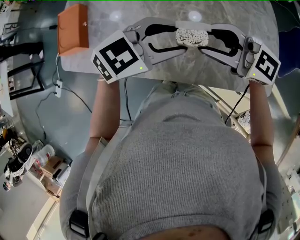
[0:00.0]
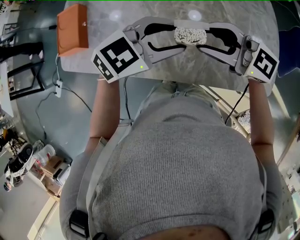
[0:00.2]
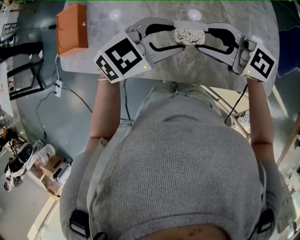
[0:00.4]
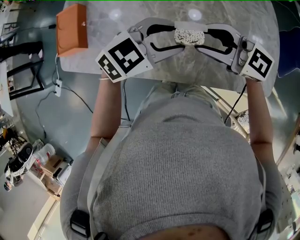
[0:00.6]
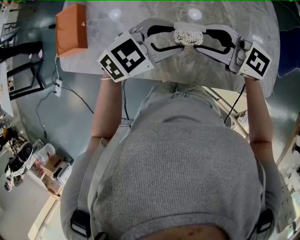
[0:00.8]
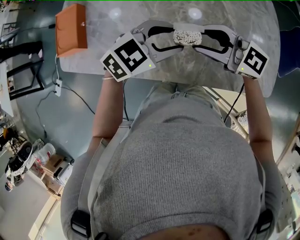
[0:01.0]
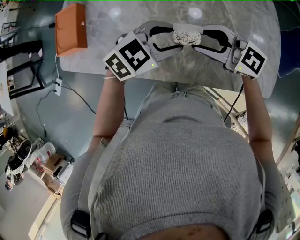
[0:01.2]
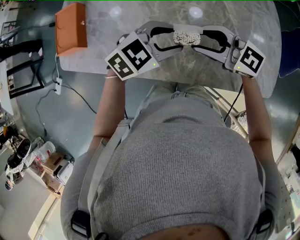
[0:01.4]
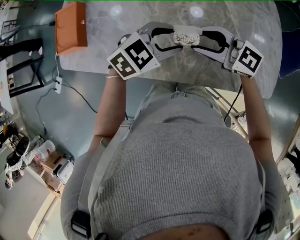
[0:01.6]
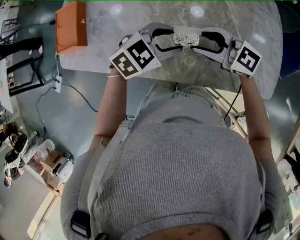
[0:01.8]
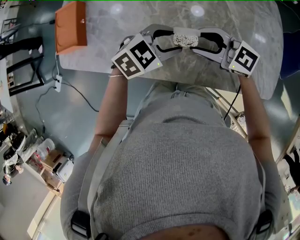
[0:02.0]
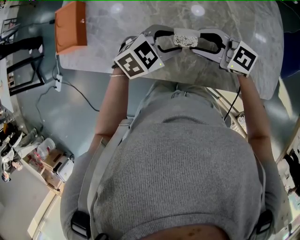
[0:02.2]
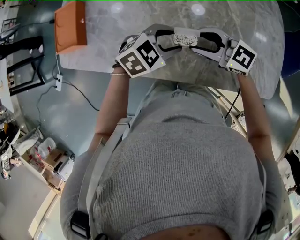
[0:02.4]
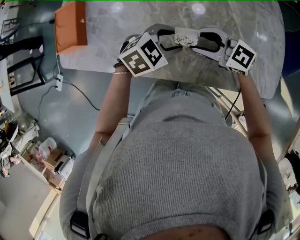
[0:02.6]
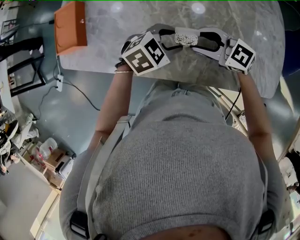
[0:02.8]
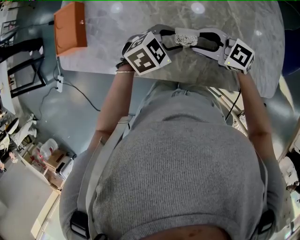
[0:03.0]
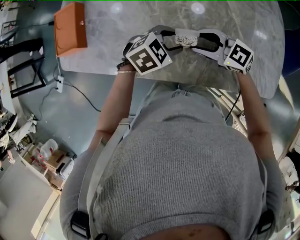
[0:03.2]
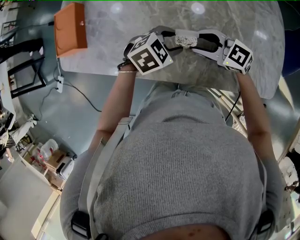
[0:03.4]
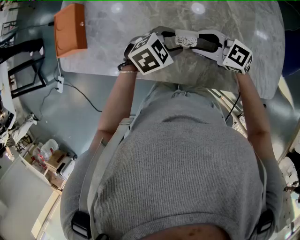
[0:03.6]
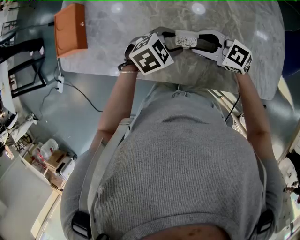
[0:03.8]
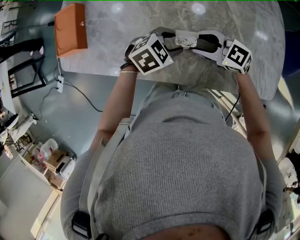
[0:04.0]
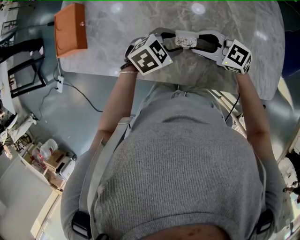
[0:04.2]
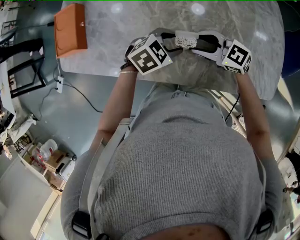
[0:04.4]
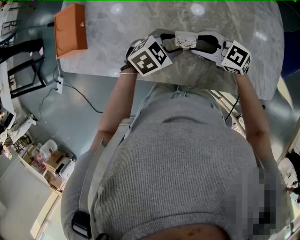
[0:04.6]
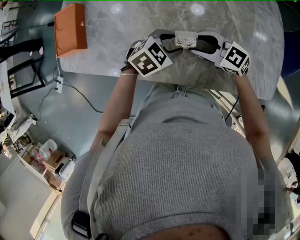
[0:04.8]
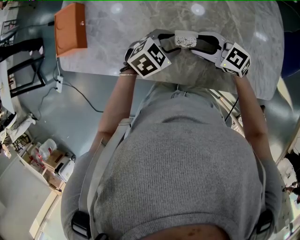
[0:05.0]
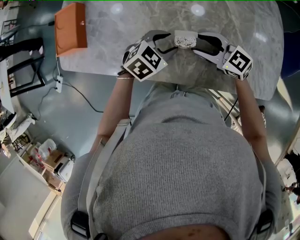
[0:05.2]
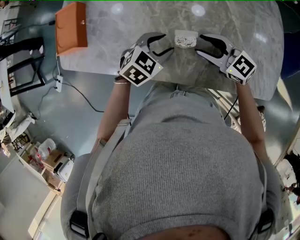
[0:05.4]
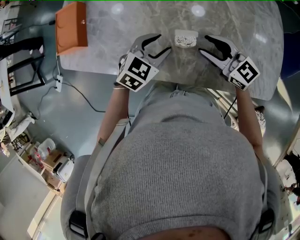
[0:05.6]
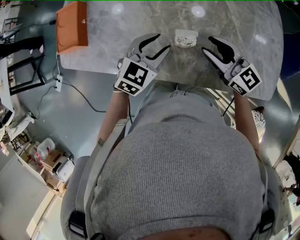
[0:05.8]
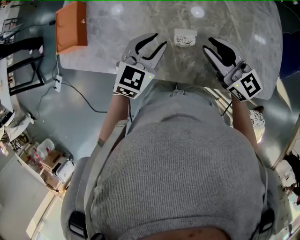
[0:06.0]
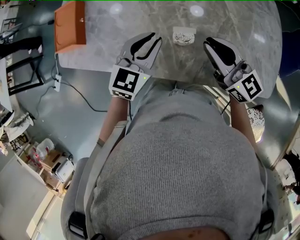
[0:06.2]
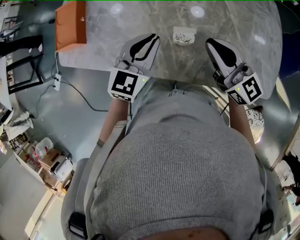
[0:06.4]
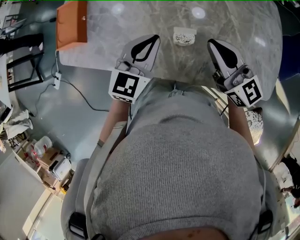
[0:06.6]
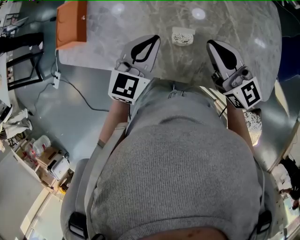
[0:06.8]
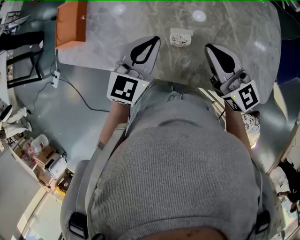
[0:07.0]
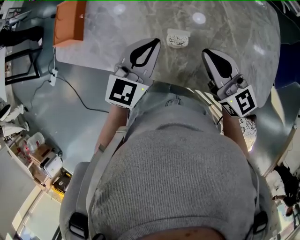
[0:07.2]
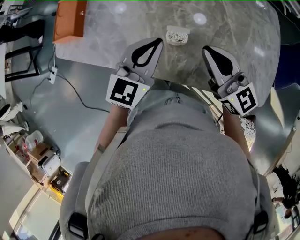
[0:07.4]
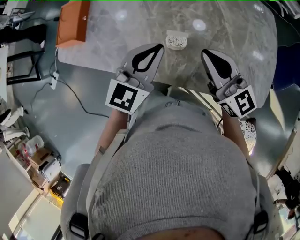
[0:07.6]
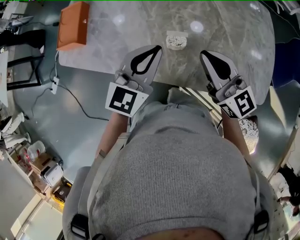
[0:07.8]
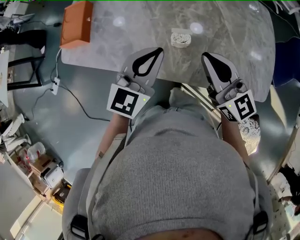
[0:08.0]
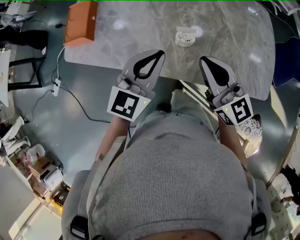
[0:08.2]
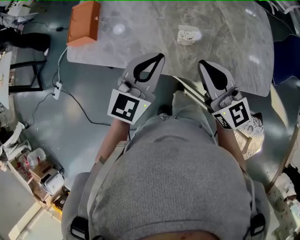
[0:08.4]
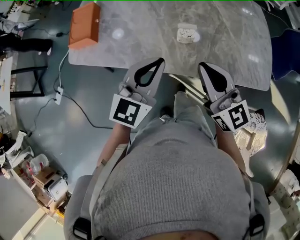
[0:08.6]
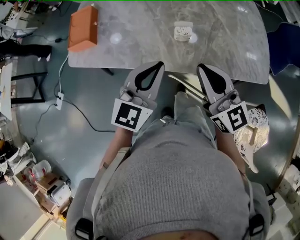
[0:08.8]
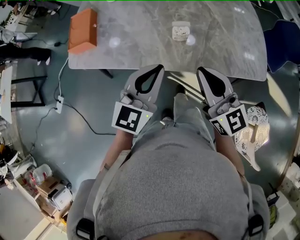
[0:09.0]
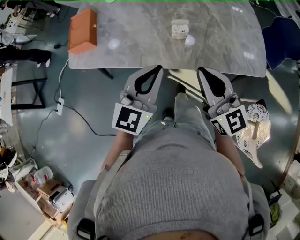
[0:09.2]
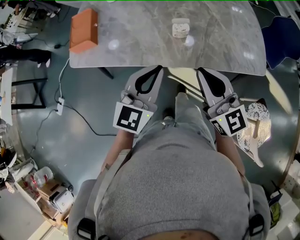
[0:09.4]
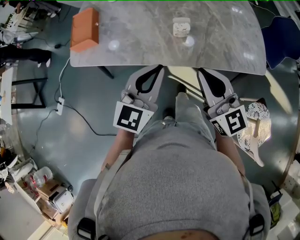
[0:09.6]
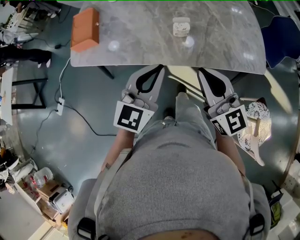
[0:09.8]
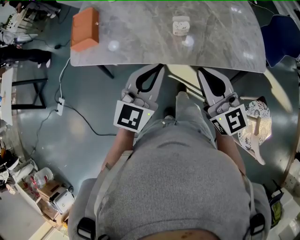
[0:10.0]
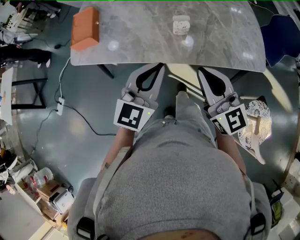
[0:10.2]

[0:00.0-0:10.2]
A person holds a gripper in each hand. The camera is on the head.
0.0 to 1.4 s: Both grippers travel together downward, some 10 cm.
1.4 to 3.0 s: The two grippers go approximately 10 cm downward.
3.0 to 4.4 s: The grippers move only a little.
4.4 to 5.8 s: Both grippers travel together upward, about 5 cm. The right gripper rotates some 30 degrees, while the left gripper changes its angle by approximately 30 degrees.
5.8 to 7.2 s: Both grippers travel together upward, about 5 cm. The right gripper closes, while the left gripper rotates about 20 degrees, and closes its fingers.
7.2 to 8.8 s: The left gripper travels backward by roughly 15 cm. Meanwhile the right gripper goes approximately 15 cm backward and to the left.
8.8 to 10.2 s: Both grippers travel together backward, roughly 5 cm.

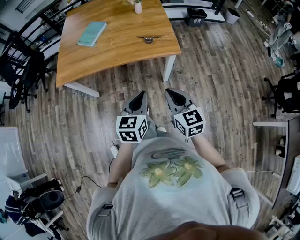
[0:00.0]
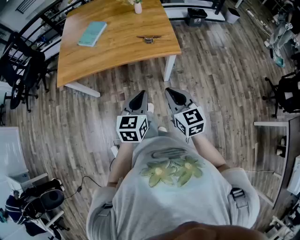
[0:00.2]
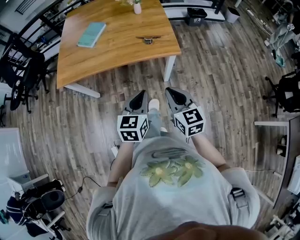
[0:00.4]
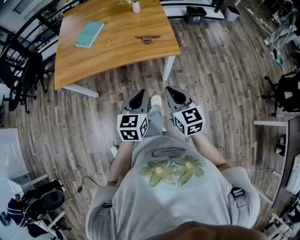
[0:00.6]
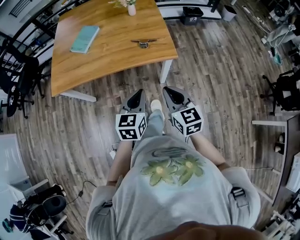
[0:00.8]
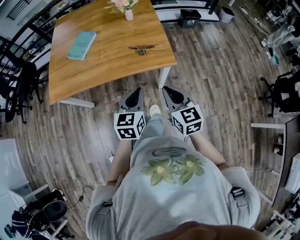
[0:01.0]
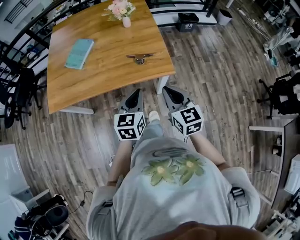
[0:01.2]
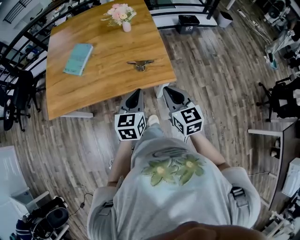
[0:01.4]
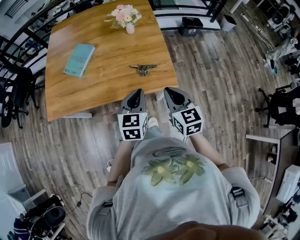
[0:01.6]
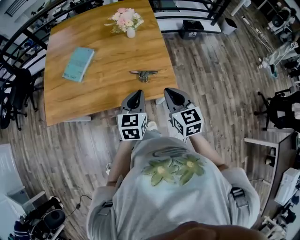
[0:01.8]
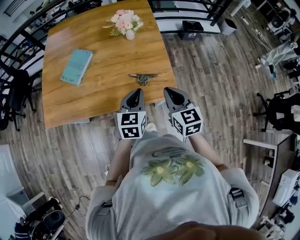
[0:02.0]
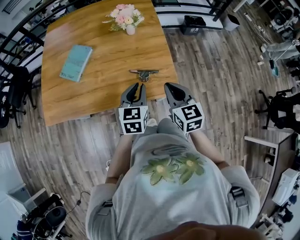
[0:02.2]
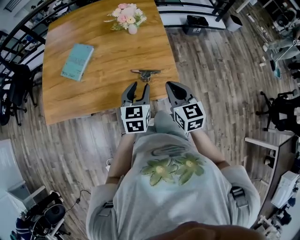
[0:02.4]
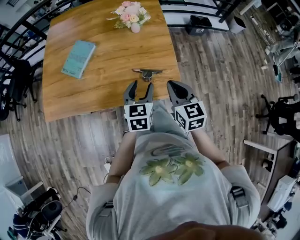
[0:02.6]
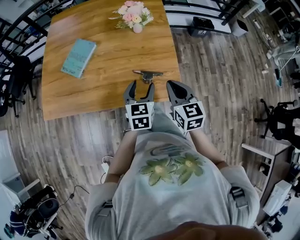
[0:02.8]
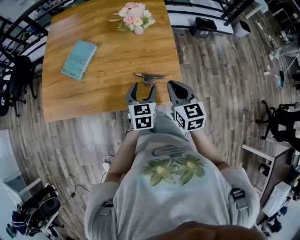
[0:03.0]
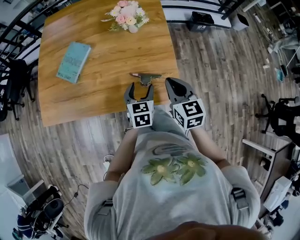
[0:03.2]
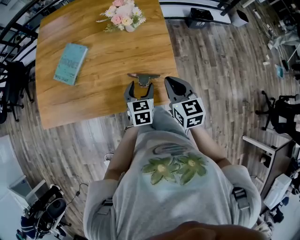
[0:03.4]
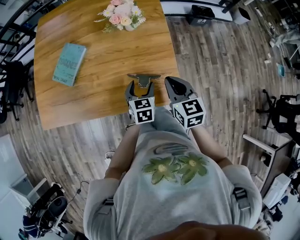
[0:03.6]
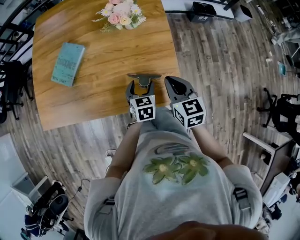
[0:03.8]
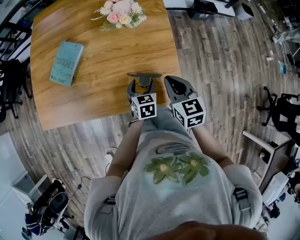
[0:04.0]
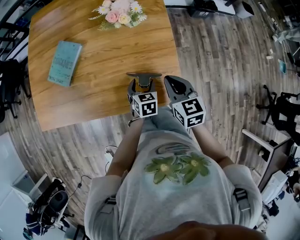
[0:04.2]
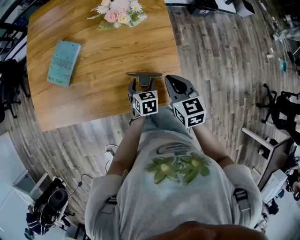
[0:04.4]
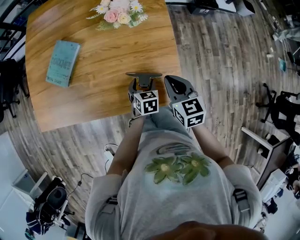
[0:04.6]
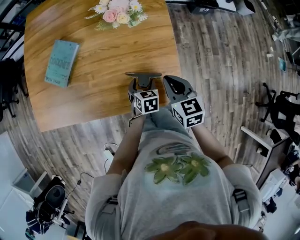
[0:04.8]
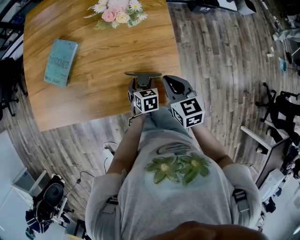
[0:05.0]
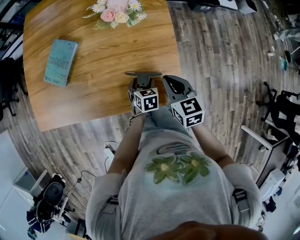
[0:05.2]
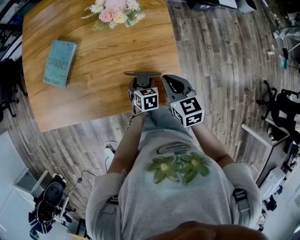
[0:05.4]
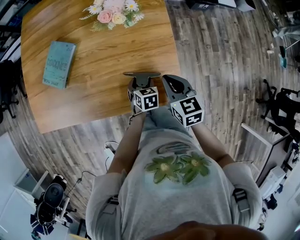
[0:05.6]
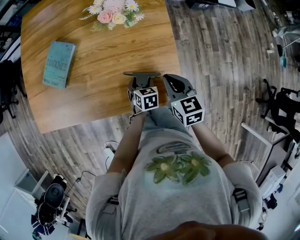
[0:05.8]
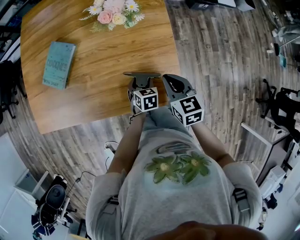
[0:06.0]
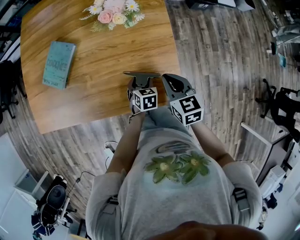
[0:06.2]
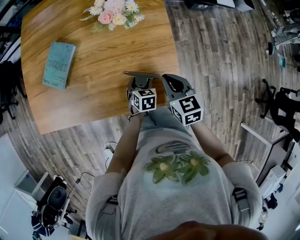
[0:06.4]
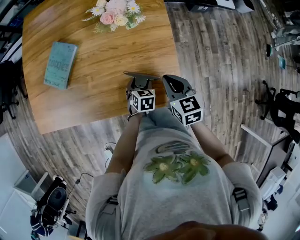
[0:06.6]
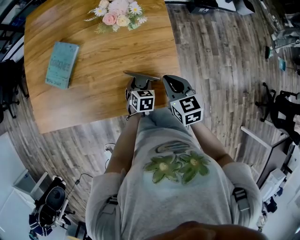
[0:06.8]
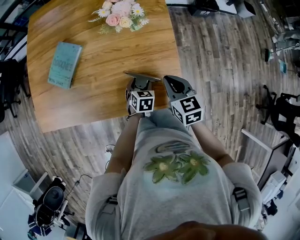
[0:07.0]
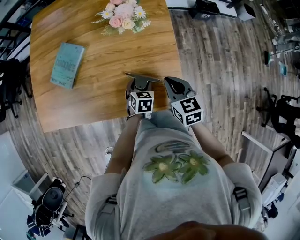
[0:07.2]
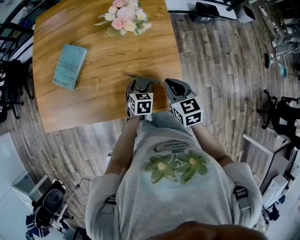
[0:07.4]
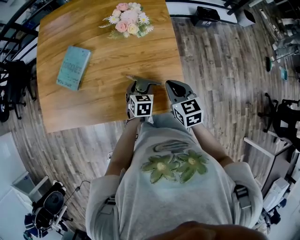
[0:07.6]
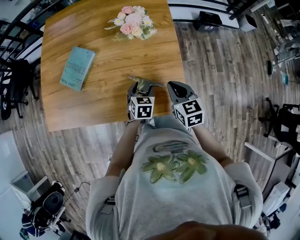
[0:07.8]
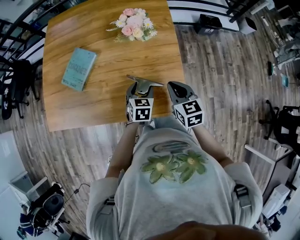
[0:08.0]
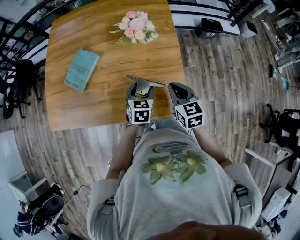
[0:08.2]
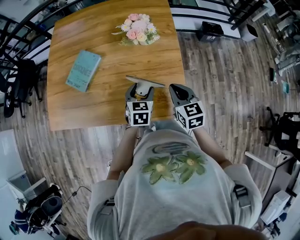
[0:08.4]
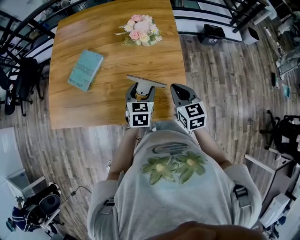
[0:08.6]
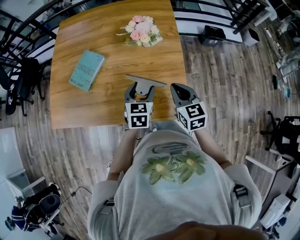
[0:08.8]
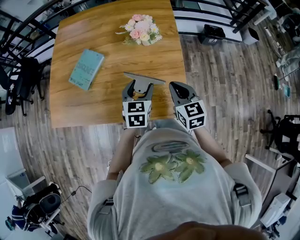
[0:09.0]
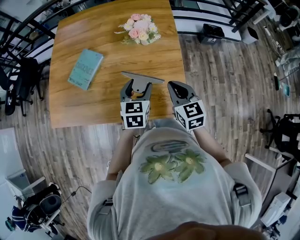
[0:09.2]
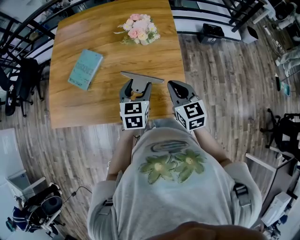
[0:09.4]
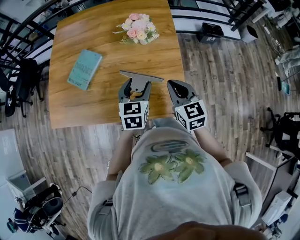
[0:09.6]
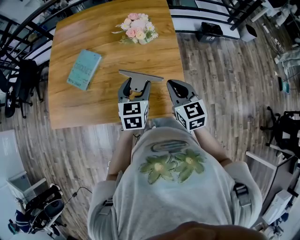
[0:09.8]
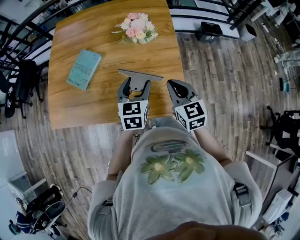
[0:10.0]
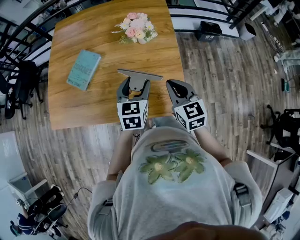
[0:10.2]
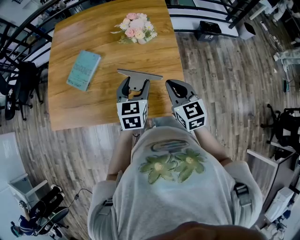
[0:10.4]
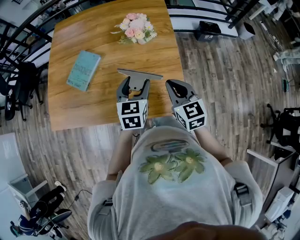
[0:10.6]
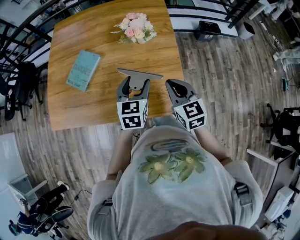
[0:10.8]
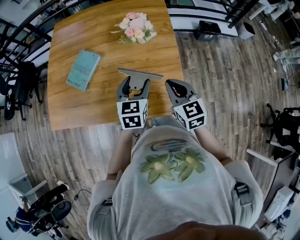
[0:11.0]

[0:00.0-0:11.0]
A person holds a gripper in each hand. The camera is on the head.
0.0 to 1.6 s: Both grippers travel together forward, roughly 25 cm.
1.6 to 3.2 s: The right gripper goes about 15 cm forward. Meanwhile the left gripper shifts approximately 20 cm forward and downward, and opens.
3.2 to 4.8 s: The right gripper moves downward, approximately 5 cm. Meanwhile the left gripper heads downward, covering approximately 15 cm, and rotates about 20 degrees.
4.8 to 6.2 s: The grippers move only a little.
6.2 to 7.8 s: The left gripper goes about 10 cm upward.
7.8 to 9.4 s: The right gripper heads upward, covering some 5 cm. Meanwhile the left gripper heads upward, covering some 15 cm.
9.4 to 11.0 s: The grippers make only small movements.

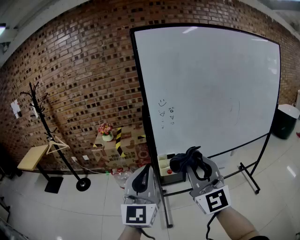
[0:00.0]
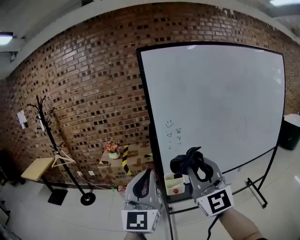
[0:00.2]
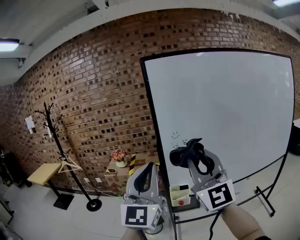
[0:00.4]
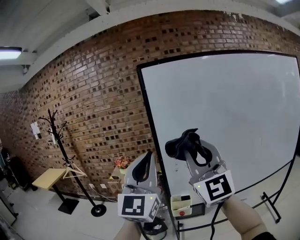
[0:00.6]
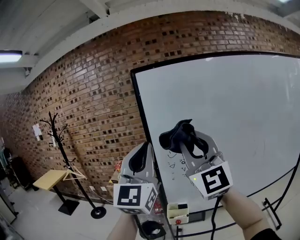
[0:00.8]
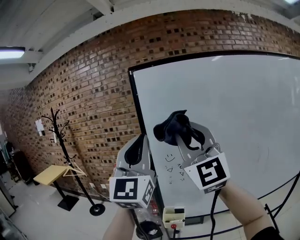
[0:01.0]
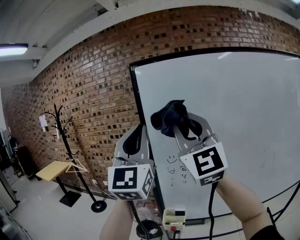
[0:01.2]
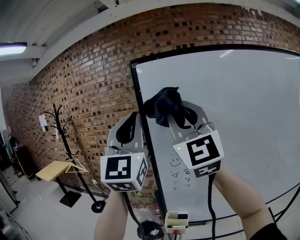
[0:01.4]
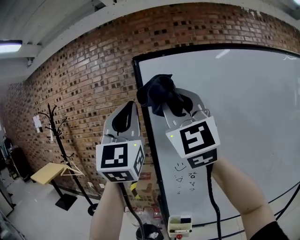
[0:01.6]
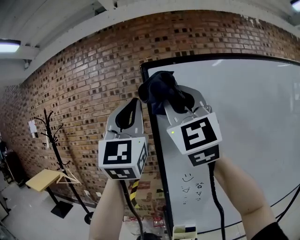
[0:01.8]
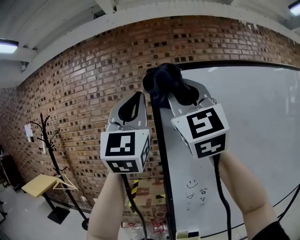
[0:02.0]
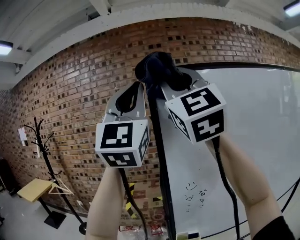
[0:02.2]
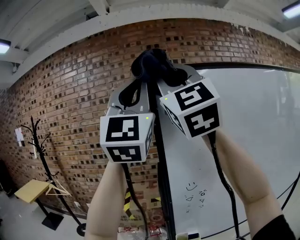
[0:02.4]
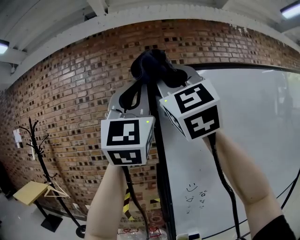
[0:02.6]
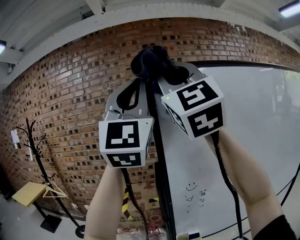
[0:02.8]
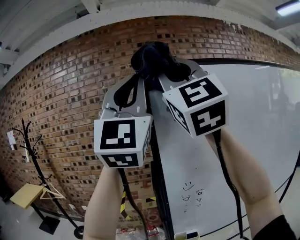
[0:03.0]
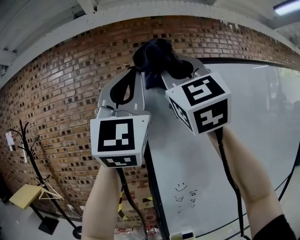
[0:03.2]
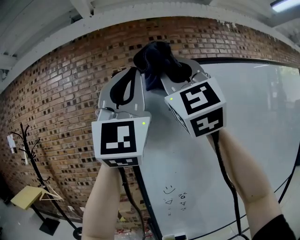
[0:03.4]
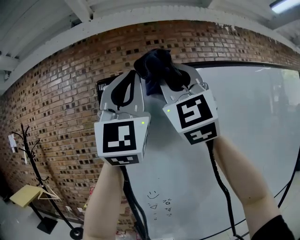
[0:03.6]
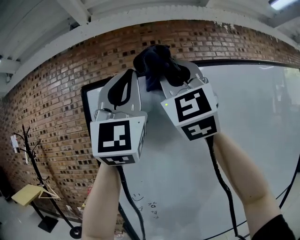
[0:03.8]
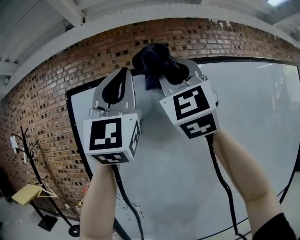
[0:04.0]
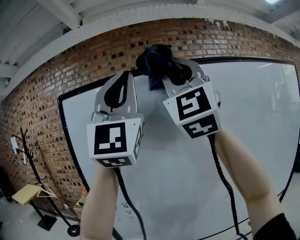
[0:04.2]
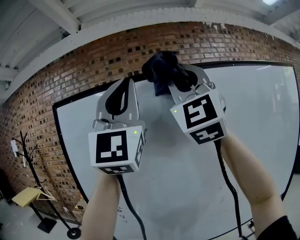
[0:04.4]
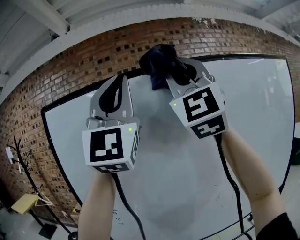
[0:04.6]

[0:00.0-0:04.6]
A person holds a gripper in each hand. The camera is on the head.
0.0 to 1.6 s: Both grippers travel together upward and forward, about 40 cm. The left gripper changes its angle by roughly 30 degrees.
1.6 to 3.0 s: Both grippers travel together upward, approximately 10 cm.
3.0 to 4.6 s: Both grippers travel together to the right, roughly 30 cm.
